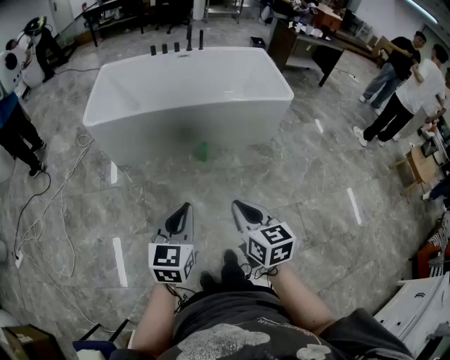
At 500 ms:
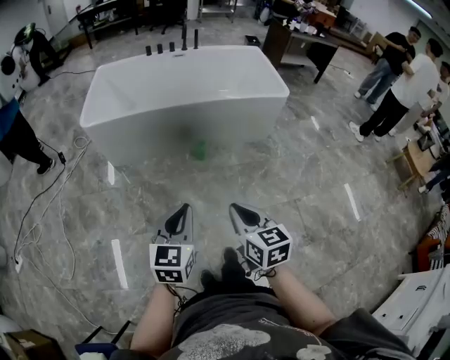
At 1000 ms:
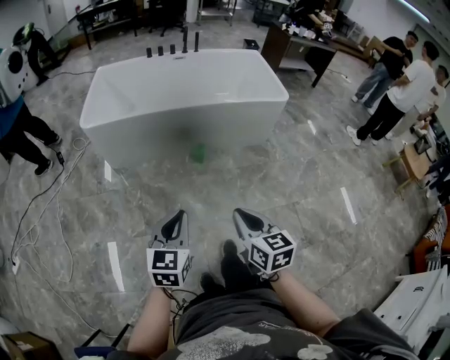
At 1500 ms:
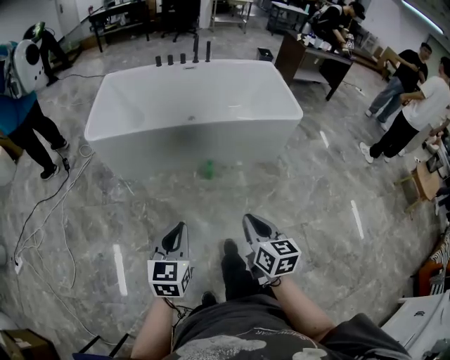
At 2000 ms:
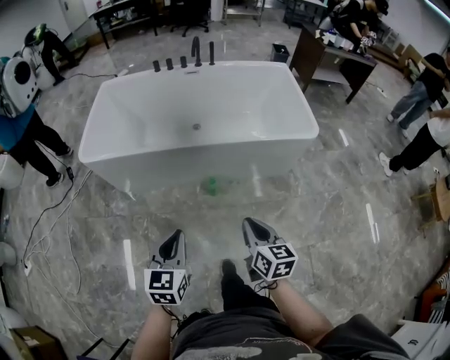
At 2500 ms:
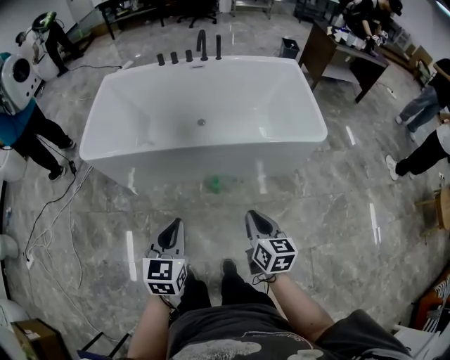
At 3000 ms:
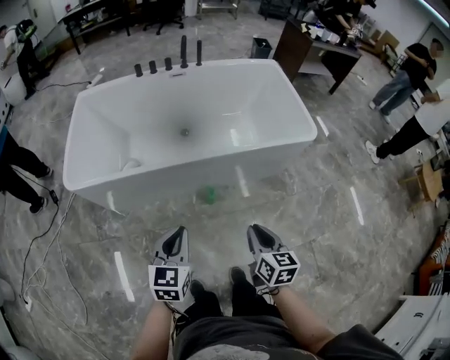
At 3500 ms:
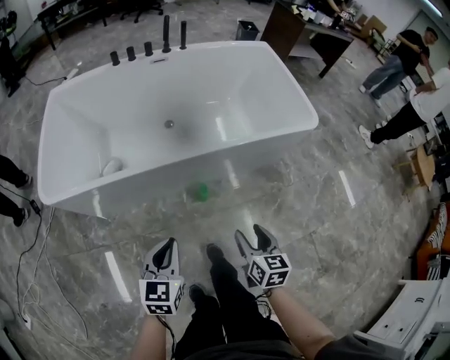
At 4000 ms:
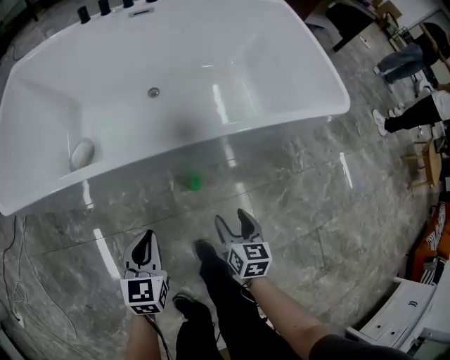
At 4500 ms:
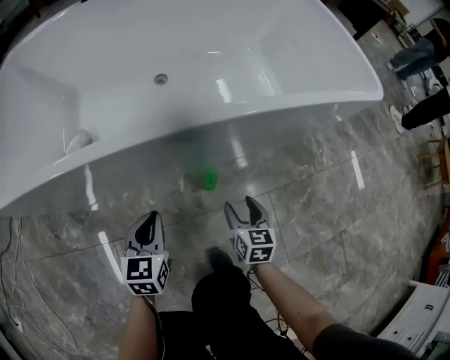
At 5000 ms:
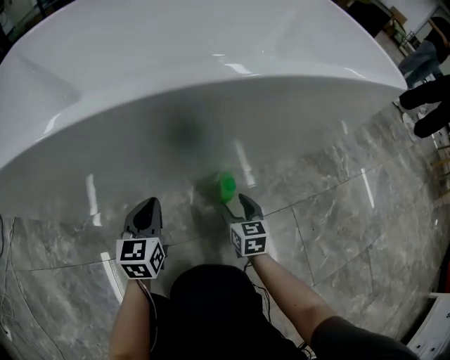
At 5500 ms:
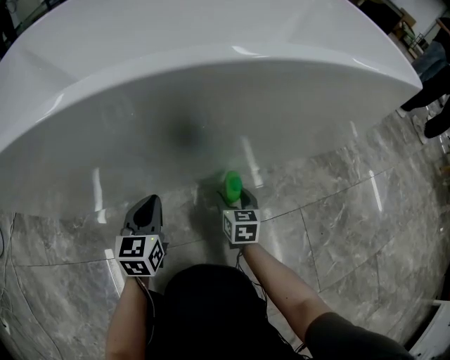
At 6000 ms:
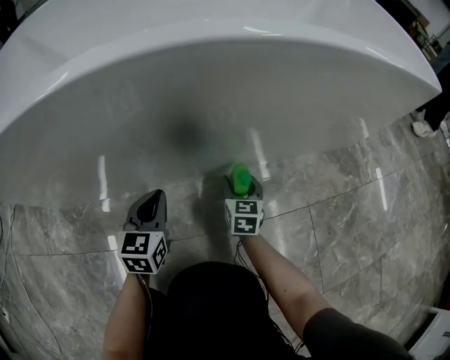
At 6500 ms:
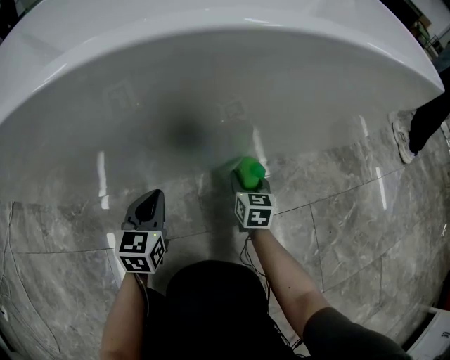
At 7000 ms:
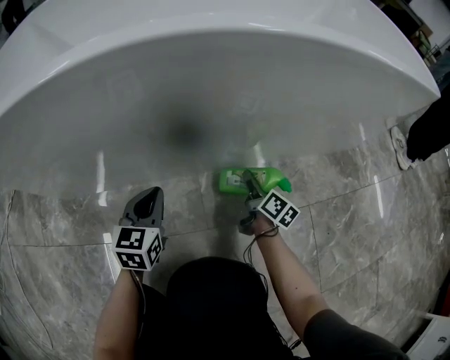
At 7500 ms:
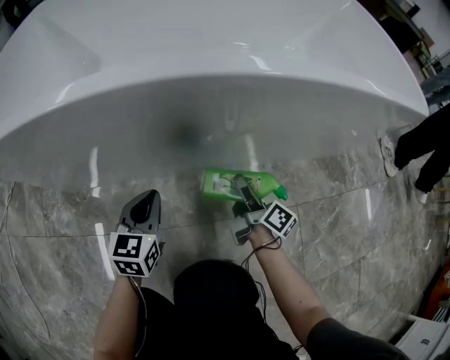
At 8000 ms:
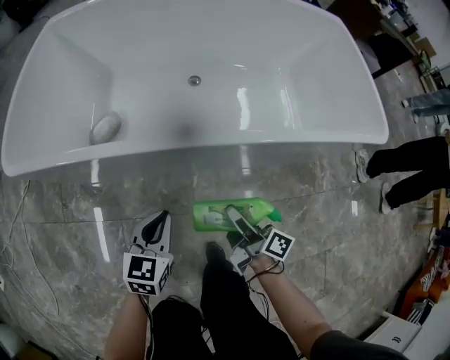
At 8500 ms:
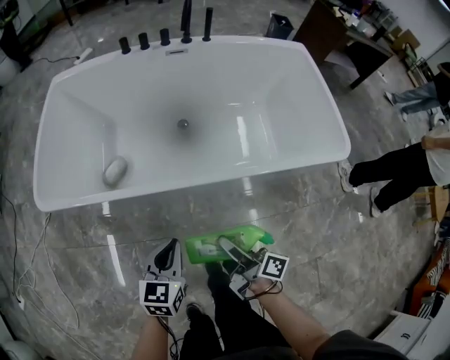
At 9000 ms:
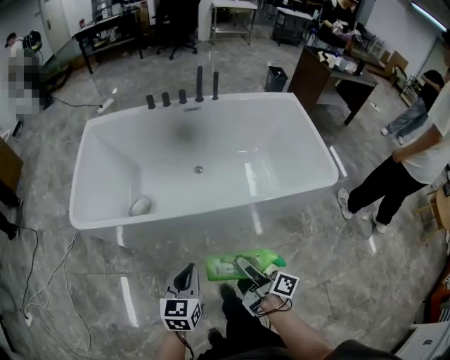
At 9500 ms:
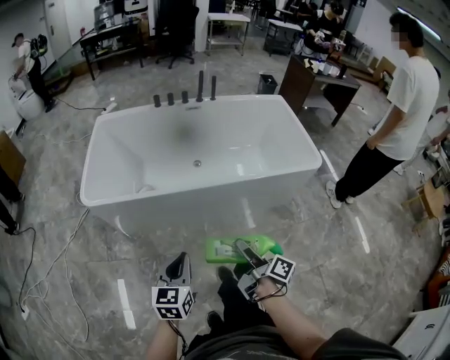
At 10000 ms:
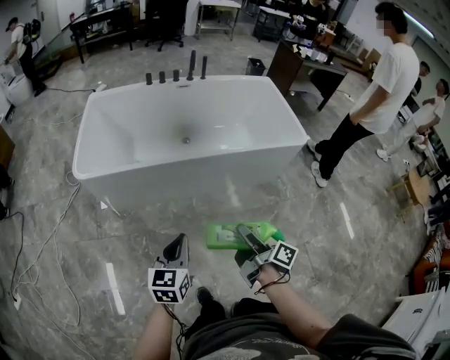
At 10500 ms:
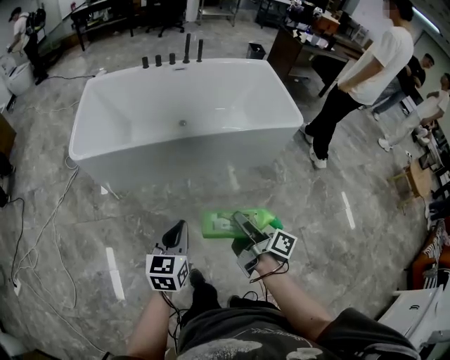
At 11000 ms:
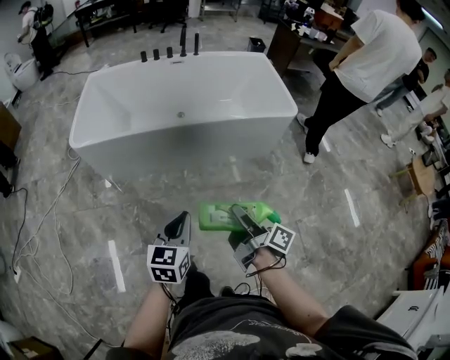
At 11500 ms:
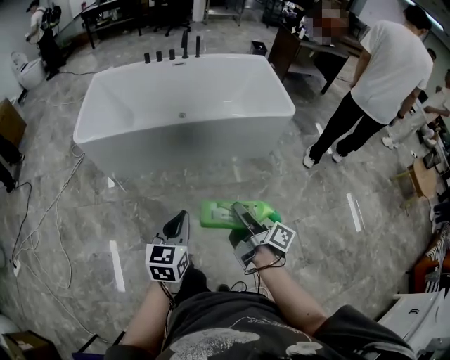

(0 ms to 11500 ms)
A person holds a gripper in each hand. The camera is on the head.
0 ms - 2000 ms: Both grippers travel together forward, some 25 cm.
2000 ms - 4000 ms: Both grippers move downward and forward, approximately 40 cm. The right gripper rotates about 20 degrees, and opens up.
4000 ms - 6000 ms: Both grippers move downward, roughly 35 cm.
6000 ms - 7500 ms: The right gripper moves upward, roughly 15 cm, and rotates around the line of its fingers by roughly 60 degrees, clockwise from behind. The left gripper travels upward by roughly 5 cm.
7500 ms - 9500 ms: The grippers both shift upward and backward by about 60 cm.
9500 ms - 11500 ms: The two grippers go roughly 25 cm backward and to the right.

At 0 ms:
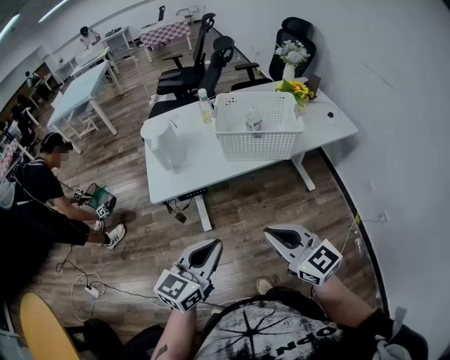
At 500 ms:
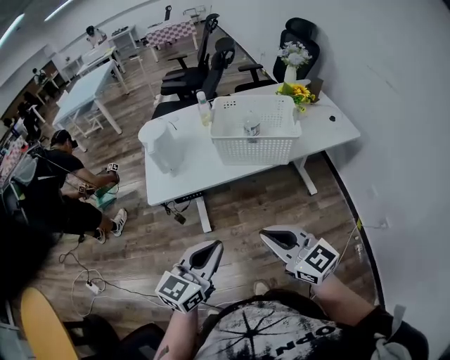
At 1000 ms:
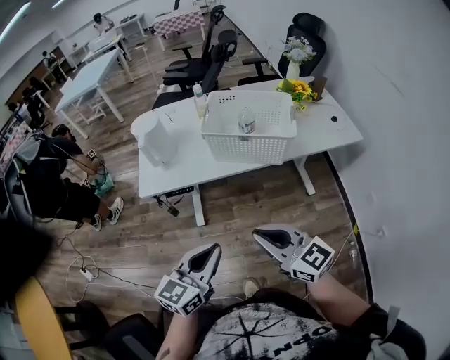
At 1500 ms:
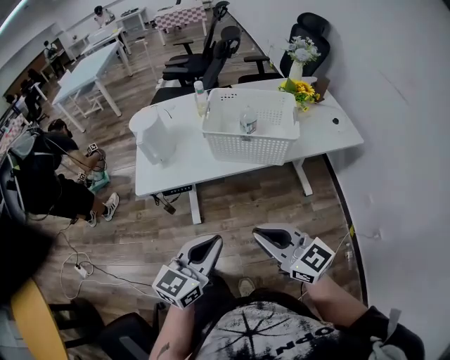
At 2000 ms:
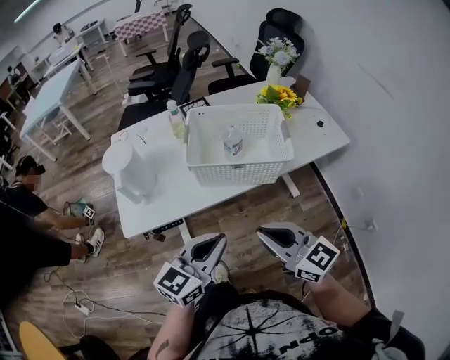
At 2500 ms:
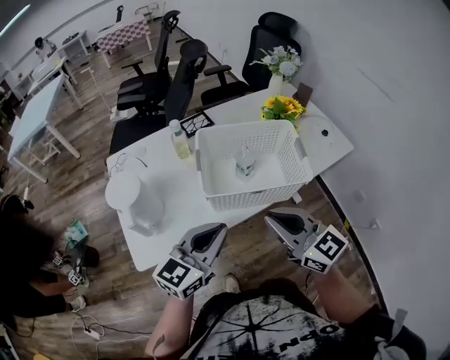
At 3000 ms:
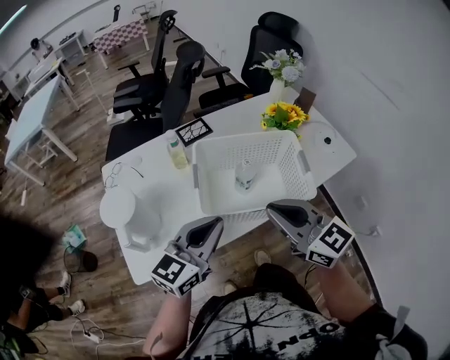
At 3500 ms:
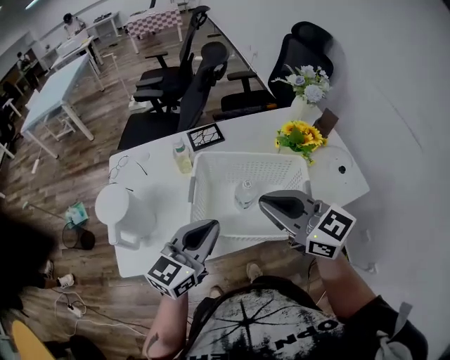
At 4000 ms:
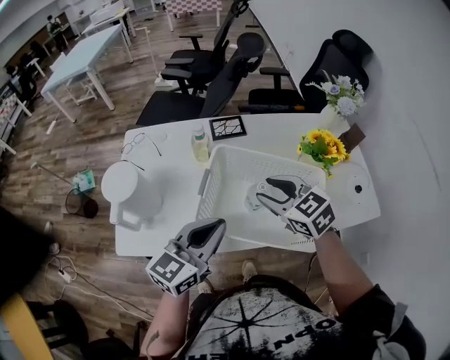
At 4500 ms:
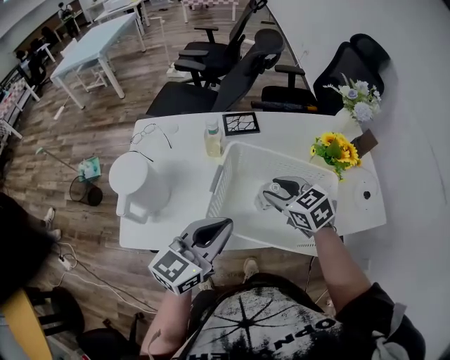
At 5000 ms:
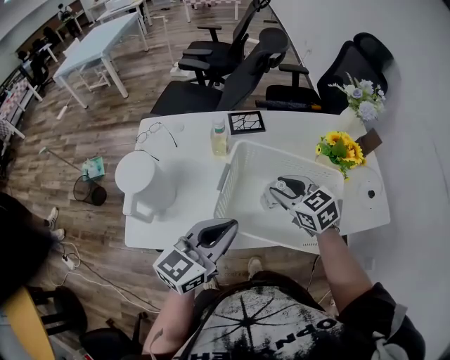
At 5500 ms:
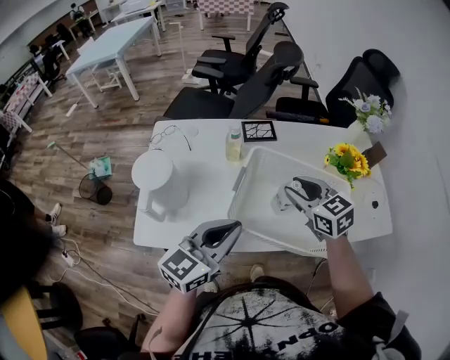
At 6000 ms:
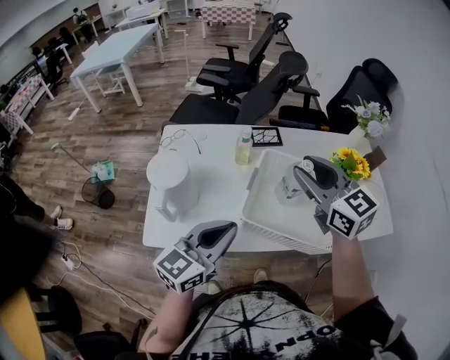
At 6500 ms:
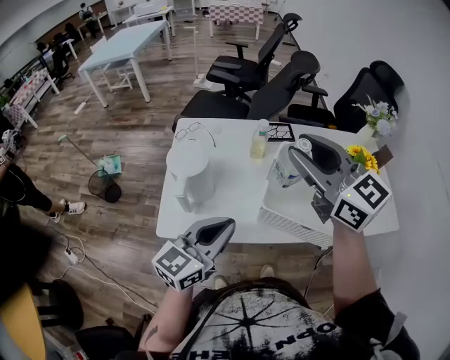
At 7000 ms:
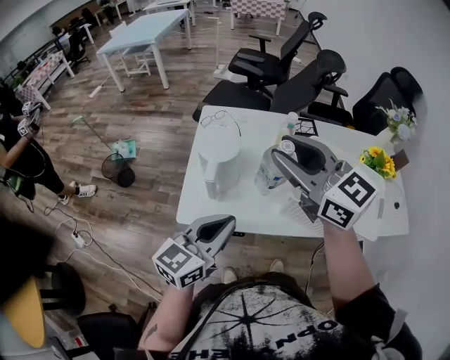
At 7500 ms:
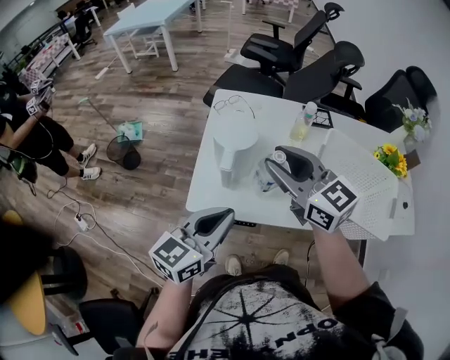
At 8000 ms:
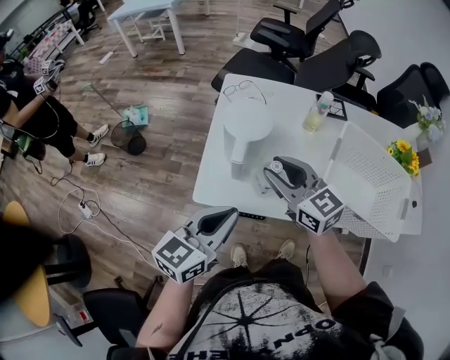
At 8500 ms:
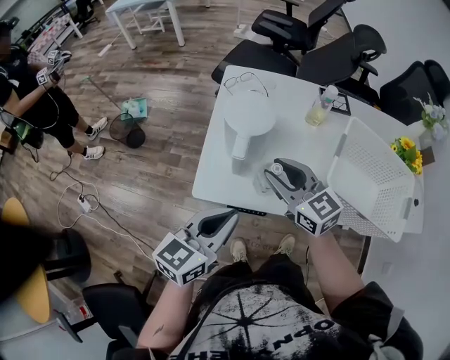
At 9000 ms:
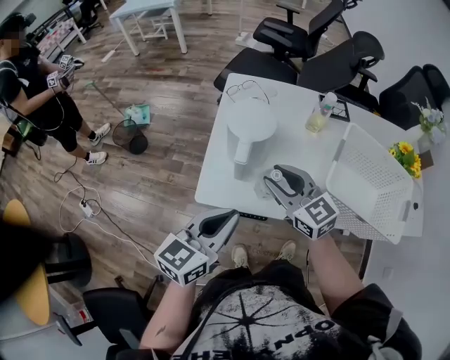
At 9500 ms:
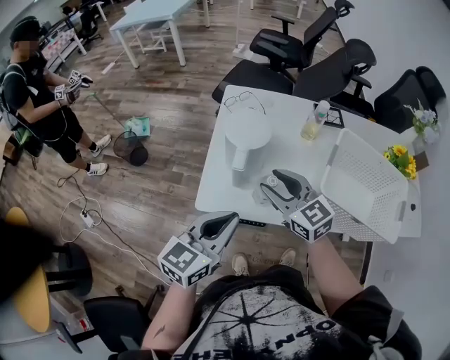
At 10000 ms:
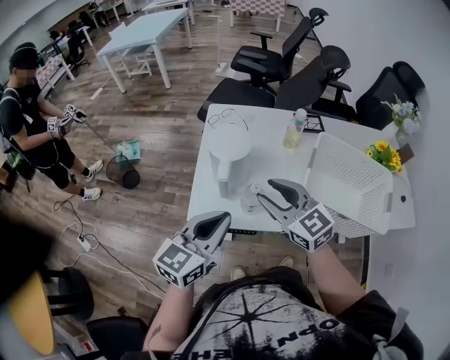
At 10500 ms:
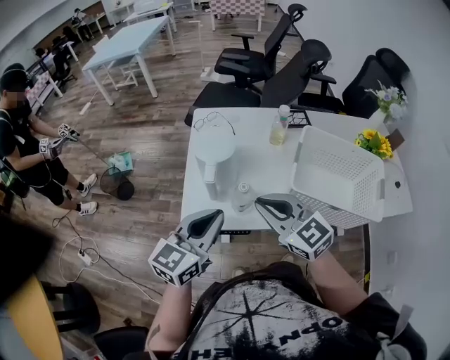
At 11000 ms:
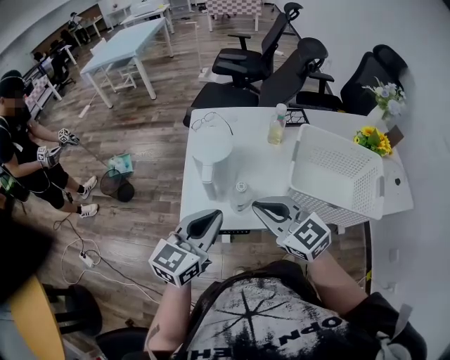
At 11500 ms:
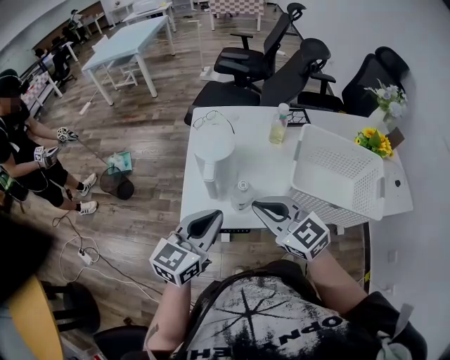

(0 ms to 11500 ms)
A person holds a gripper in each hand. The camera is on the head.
0 ms - 2000 ms: Both grippers move forward and to the right, roughly 20 cm.
2000 ms - 4000 ms: The grippers both shift forward by approximately 30 cm. The right gripper turns by some 30 degrees, and opens up.
4000 ms - 6000 ms: The left gripper heads to the left, covering approximately 10 cm, while the right gripper heads upward and to the left, covering roughly 15 cm, and rotates some 20 degrees.
6000 ms - 7500 ms: The two grippers go approximately 20 cm to the left.
7500 ms - 9500 ms: The right gripper heads downward, covering about 15 cm.
9500 ms - 11500 ms: The right gripper goes roughly 5 cm backward, and closes.

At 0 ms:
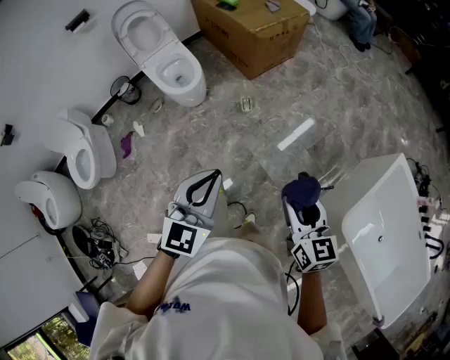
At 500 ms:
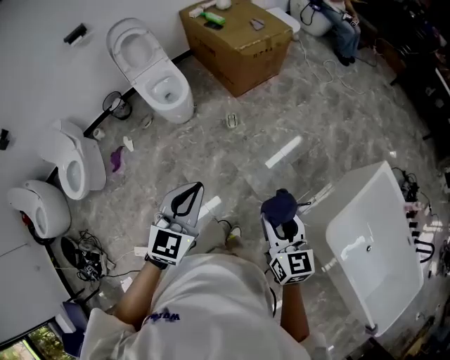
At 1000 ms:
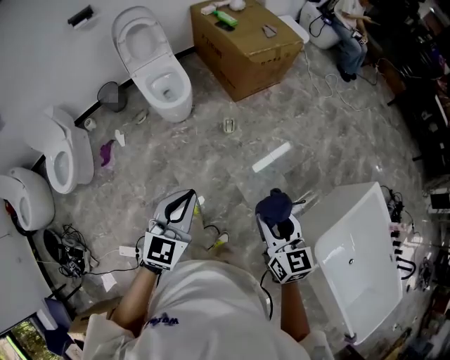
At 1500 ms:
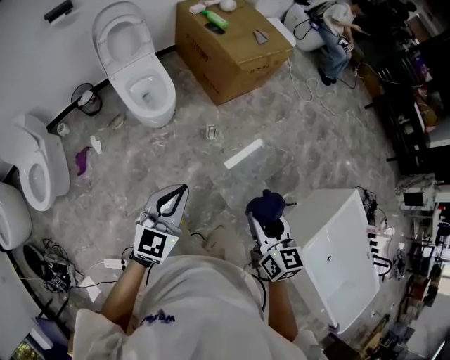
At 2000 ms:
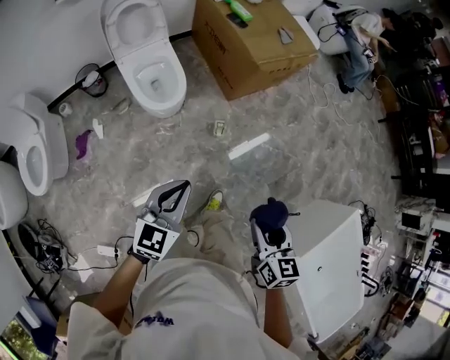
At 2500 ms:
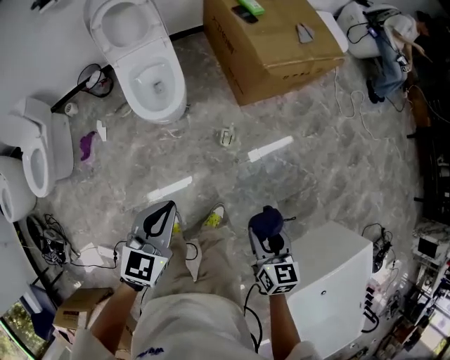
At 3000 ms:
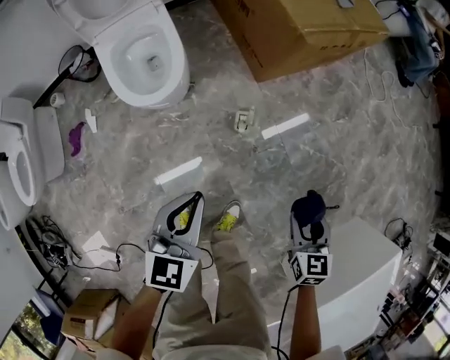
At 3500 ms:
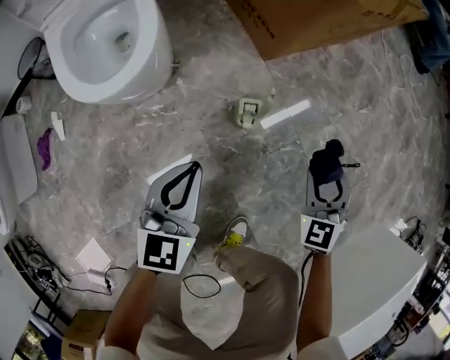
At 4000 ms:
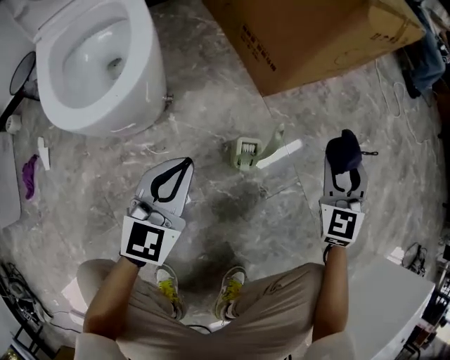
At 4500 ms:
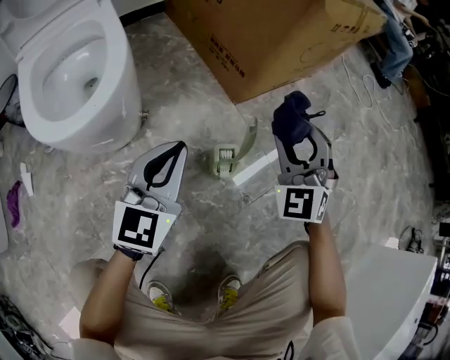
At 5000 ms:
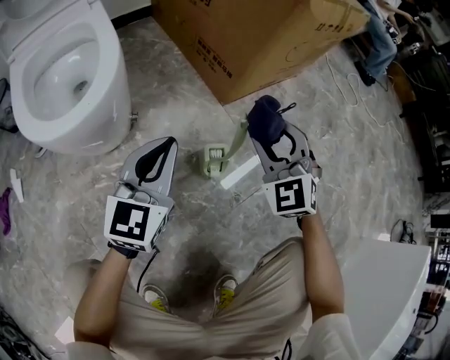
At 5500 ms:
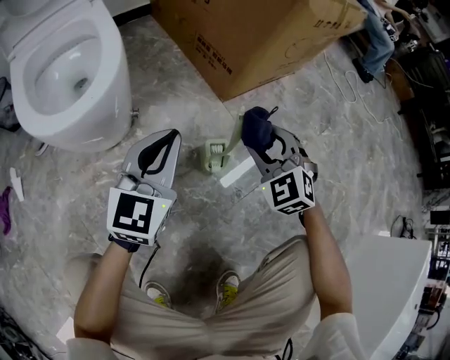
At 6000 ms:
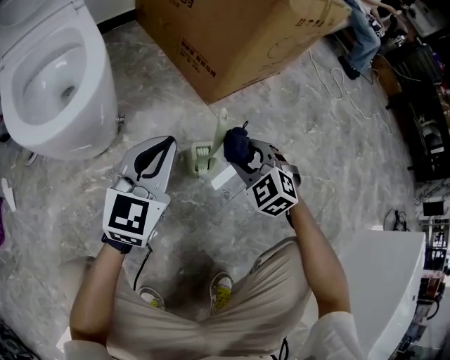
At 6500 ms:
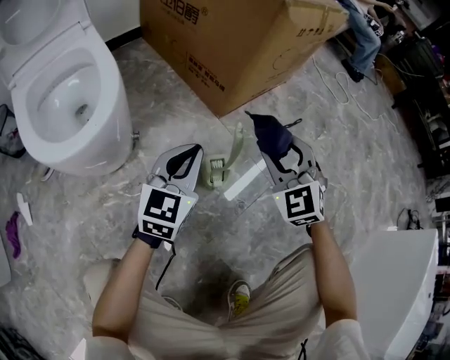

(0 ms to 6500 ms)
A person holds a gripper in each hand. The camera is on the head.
0 ms - 2000 ms: The left gripper moves forward, to the left and downward, approximately 25 cm, and turns by some 20 degrees. The right gripper moves forward and to the left, approximately 20 cm.
2000 ms - 4500 ms: The grippers both shift downward and forward by approximately 70 cm. The right gripper rolls counterclockwise, seen from behind, by approximately 60 degrees.
4500 ms - 6500 ms: The left gripper shifts by some 5 cm. The right gripper reaches roughly 10 cm downward, then returns.
